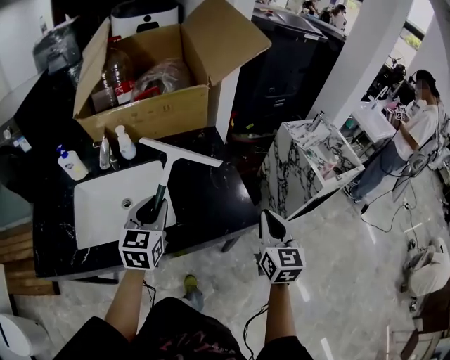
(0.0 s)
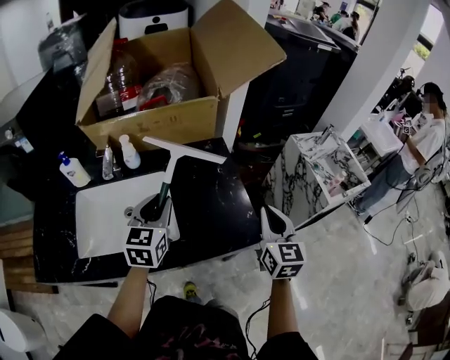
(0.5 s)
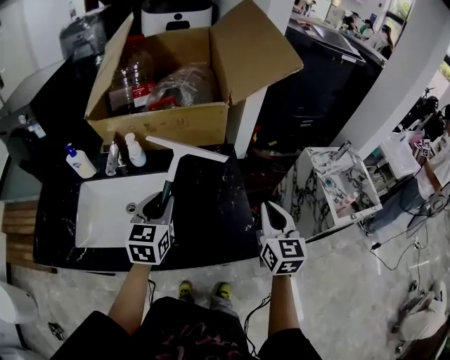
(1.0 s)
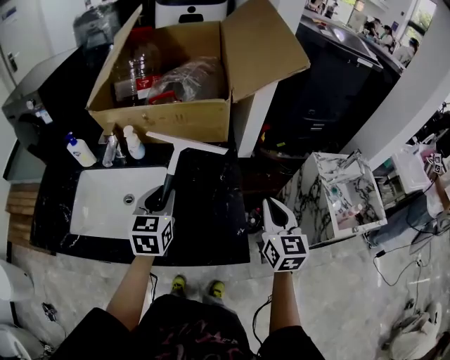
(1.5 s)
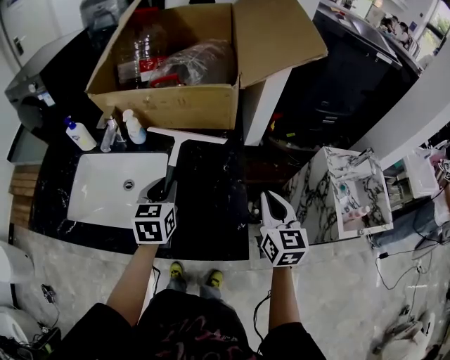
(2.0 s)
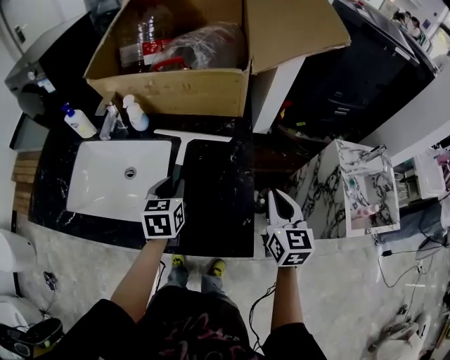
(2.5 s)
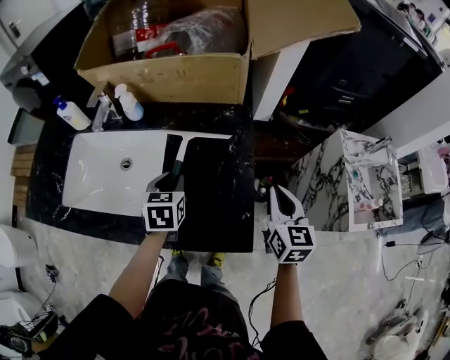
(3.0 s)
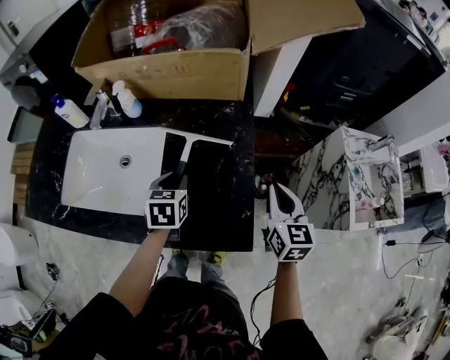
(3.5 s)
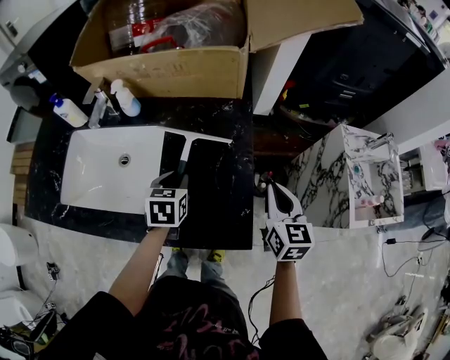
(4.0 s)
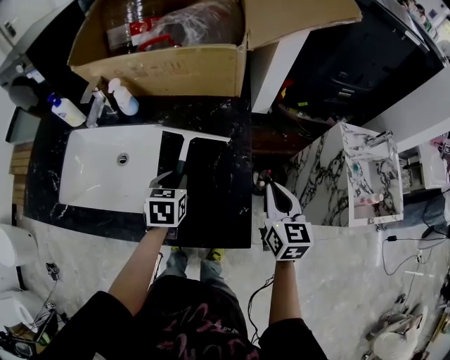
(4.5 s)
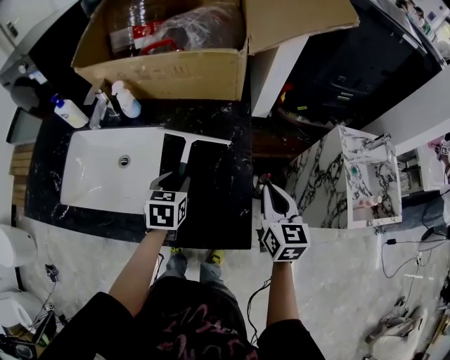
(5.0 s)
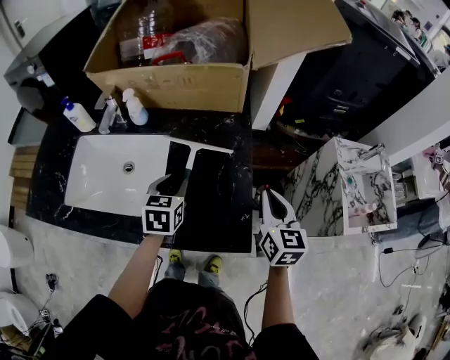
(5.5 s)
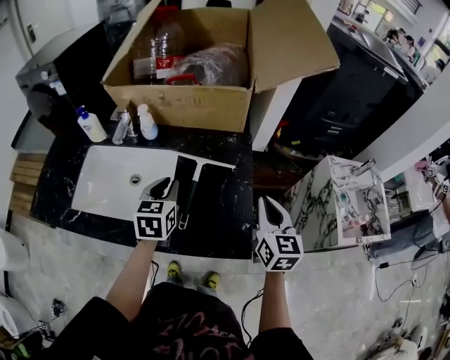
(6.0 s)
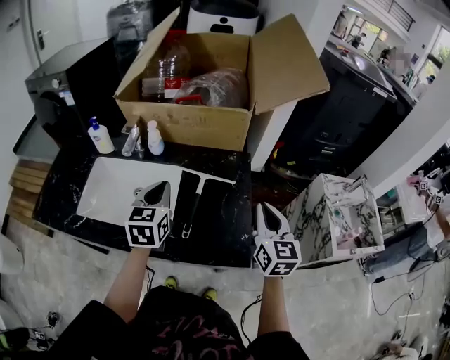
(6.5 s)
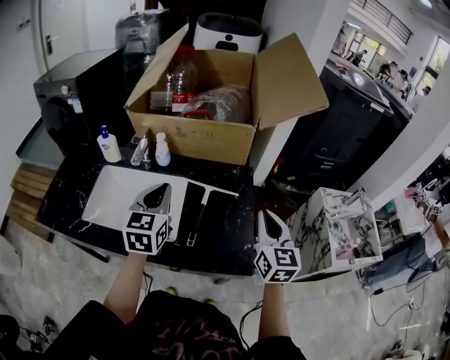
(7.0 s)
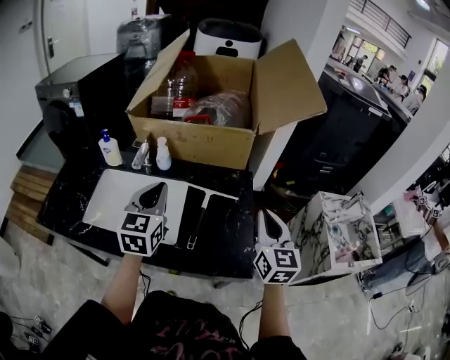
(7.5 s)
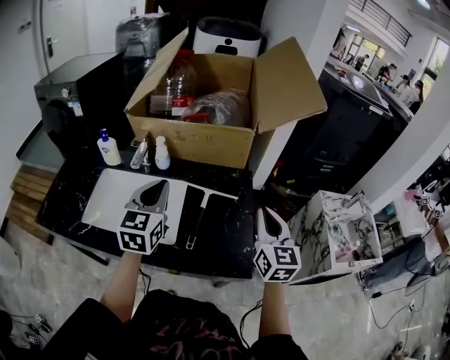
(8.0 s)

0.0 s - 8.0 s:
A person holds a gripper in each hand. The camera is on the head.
0.0 s - 2.0 s: The right gripper travels forward by about 20 cm, and turns by approximately 20 degrees. The left gripper heads forward and to the right, covering roughly 15 cm, and swivels roughly 30 degrees.
2.0 s - 4.0 s: The left gripper moves downward, about 10 cm; the right gripper goes some 10 cm downward.
4.0 s - 6.0 s: The grippers both shift upward by about 10 cm.
6.0 s - 8.0 s: The right gripper heads upward, covering approximately 10 cm; the left gripper heads upward, covering some 15 cm, and turns by about 20 degrees.

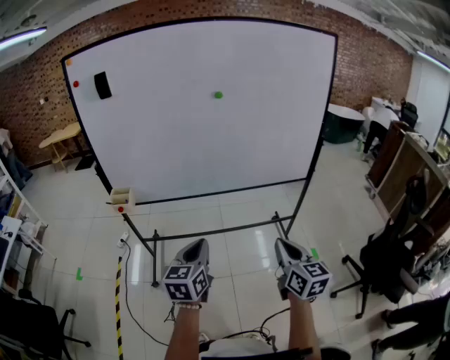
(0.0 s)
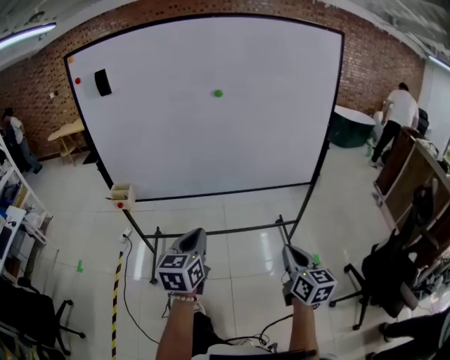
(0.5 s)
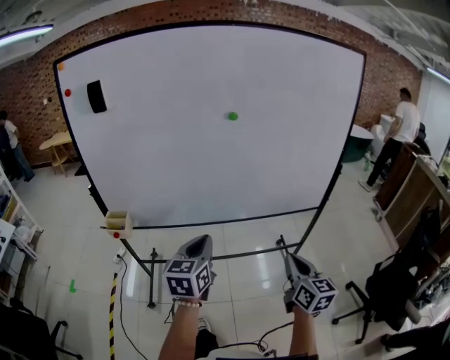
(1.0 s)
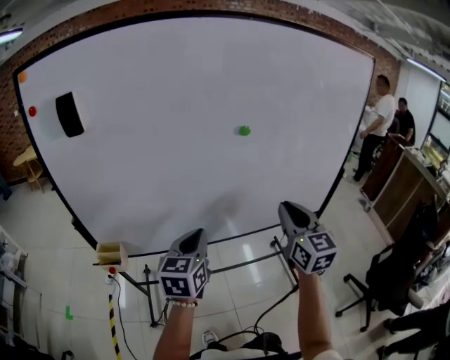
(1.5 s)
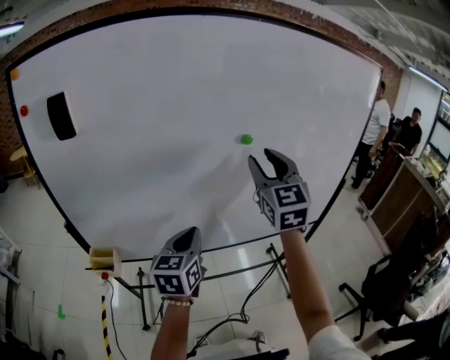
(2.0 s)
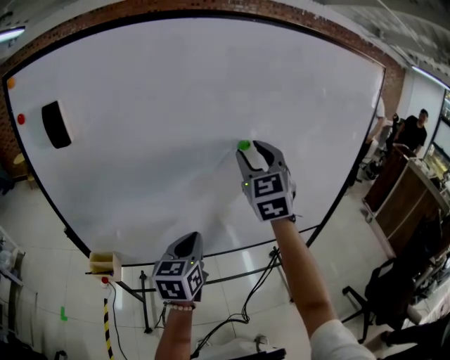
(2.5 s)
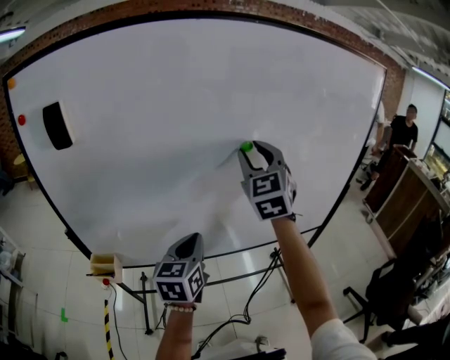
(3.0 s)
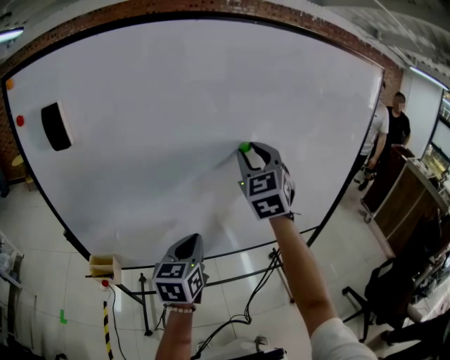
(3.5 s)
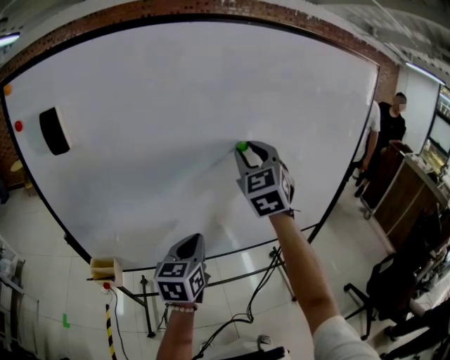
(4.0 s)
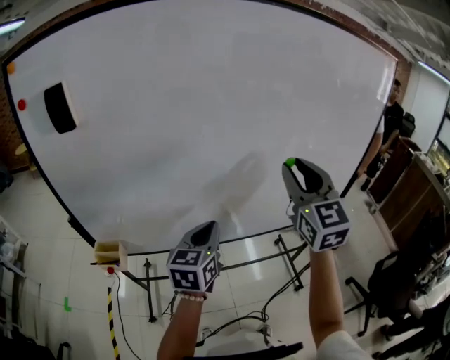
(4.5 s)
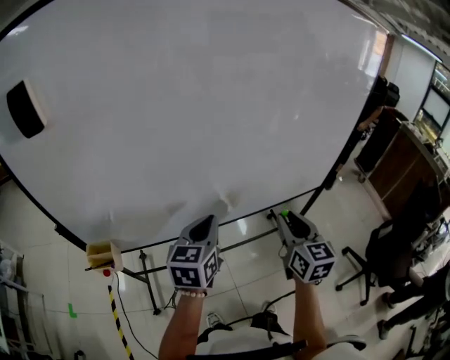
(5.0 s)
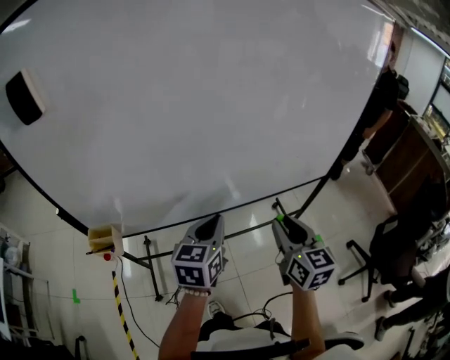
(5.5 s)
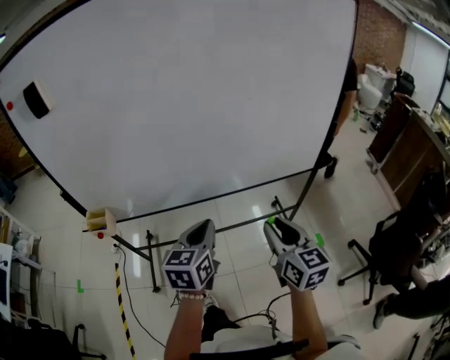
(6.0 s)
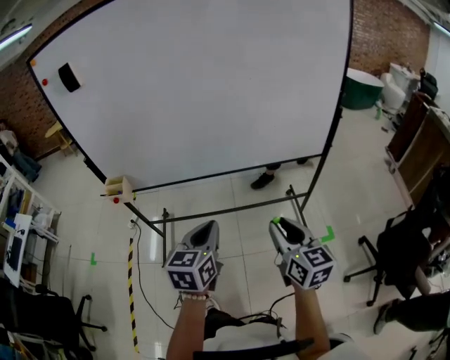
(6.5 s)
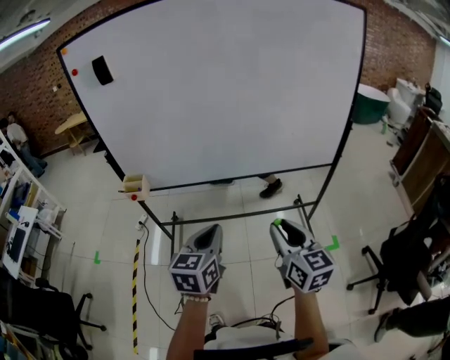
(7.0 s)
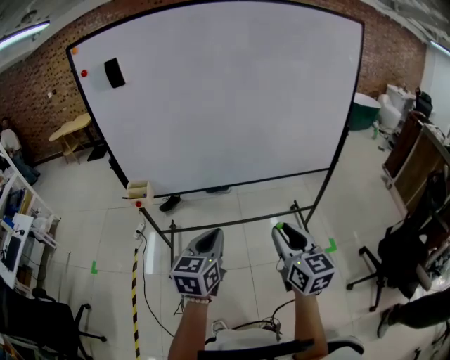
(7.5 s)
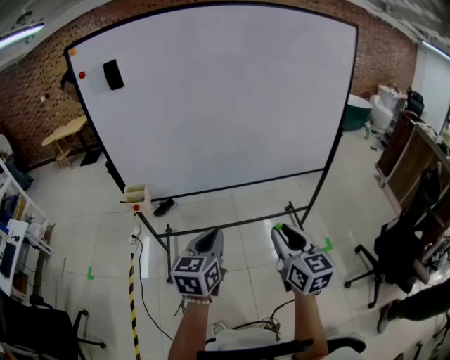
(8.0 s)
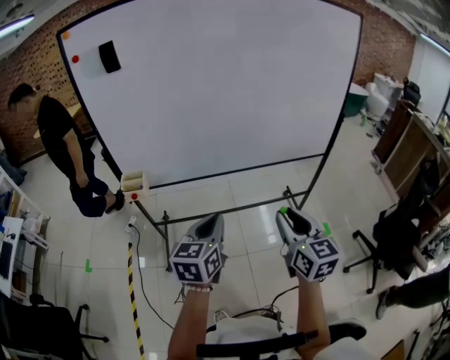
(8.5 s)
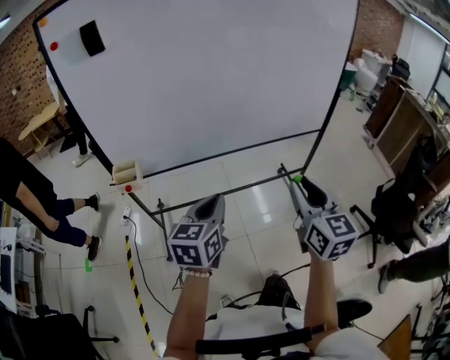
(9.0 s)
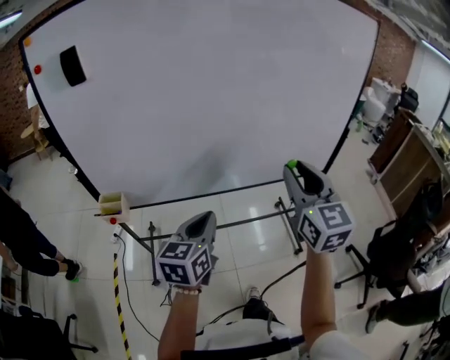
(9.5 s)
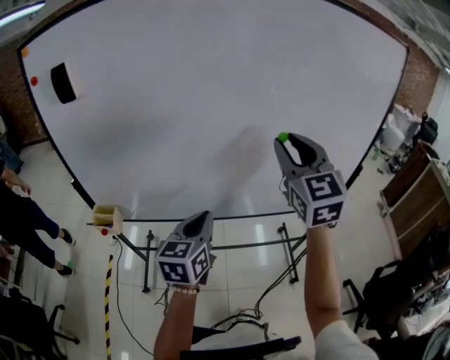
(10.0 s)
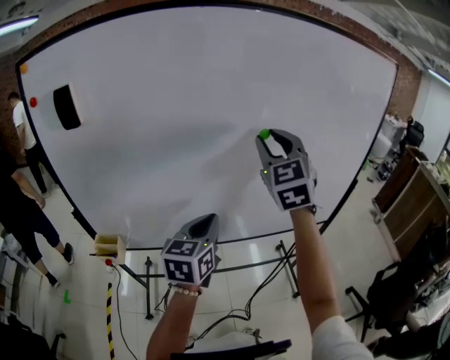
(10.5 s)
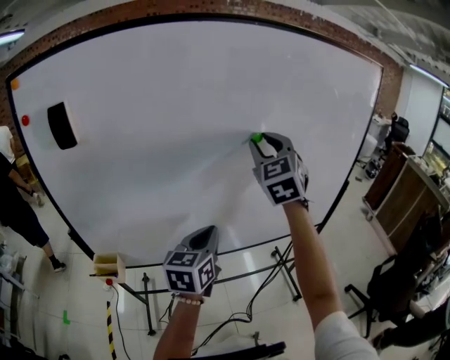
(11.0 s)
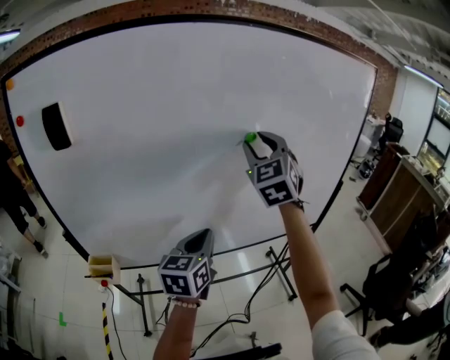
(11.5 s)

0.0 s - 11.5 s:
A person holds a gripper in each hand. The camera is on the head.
0.0 s - 2.0 s: The right gripper moves forward and upward, roughly 50 cm, swivels roughly 40 degrees, and opens up. The left gripper moves forward, roughly 35 cm.
2.0 s - 4.0 s: The right gripper shifts by about 5 cm.
4.0 s - 6.0 s: The left gripper heads to the right, backward and downward, covering roughly 20 cm; the right gripper moves backward, downward and to the right, approximately 40 cm, and rotates around the line of its fingers by roughly 40 degrees, clockwise from behind.
6.0 s - 7.5 s: The two grippers go about 20 cm backward and to the left.
7.5 s - 9.5 s: The left gripper travels forward by approximately 15 cm. The right gripper is displaced forward and upward by some 25 cm, and changes its angle by some 20 degrees.
9.5 s - 11.5 s: The right gripper is displaced forward and upward by some 30 cm, and rotates approximately 30 degrees, while the left gripper moves forward, roughly 15 cm.

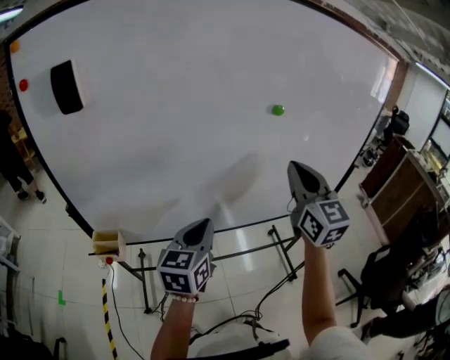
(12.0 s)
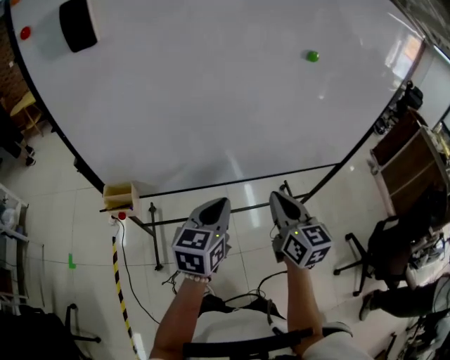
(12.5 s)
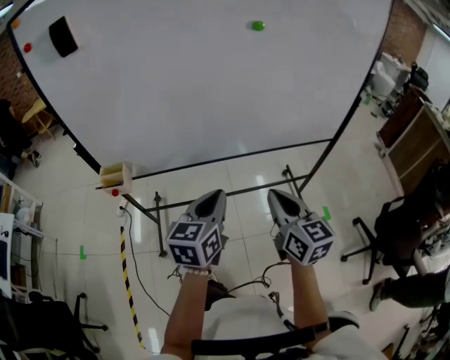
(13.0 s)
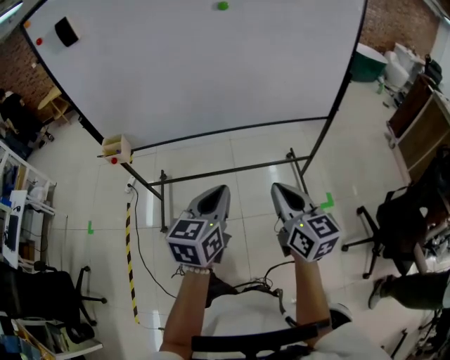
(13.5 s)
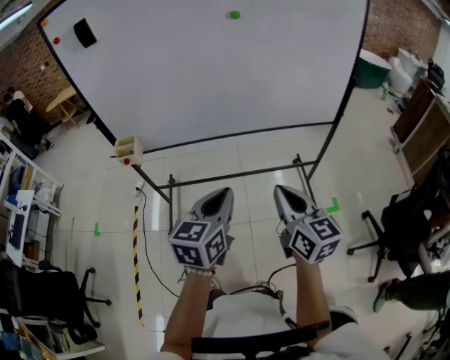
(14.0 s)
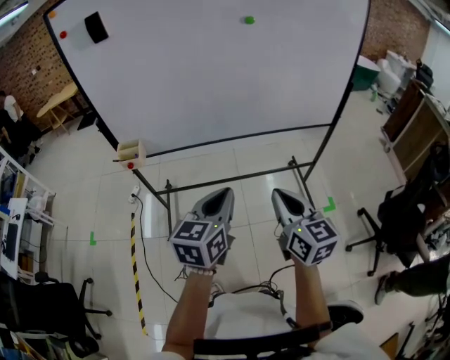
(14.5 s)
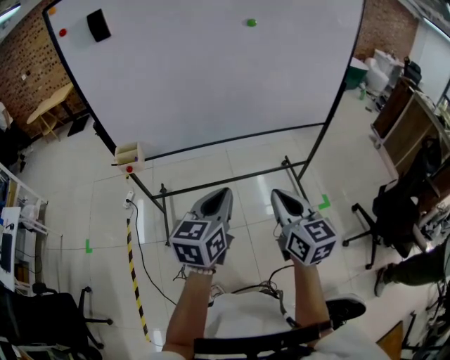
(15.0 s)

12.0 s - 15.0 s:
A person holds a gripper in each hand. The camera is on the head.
12.0 s - 13.5 s: The right gripper heads backward and downward, covering some 40 cm, and turns by approximately 30 degrees; the left gripper goes some 30 cm backward and to the right.
13.5 s - 15.0 s: The grippers both shift to the left by roughly 15 cm.

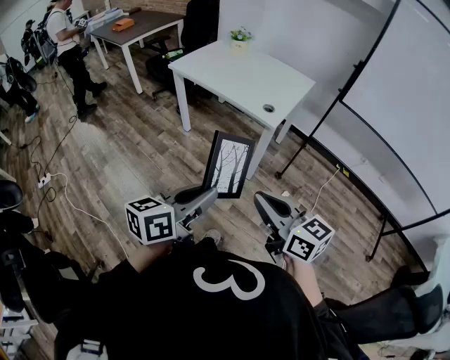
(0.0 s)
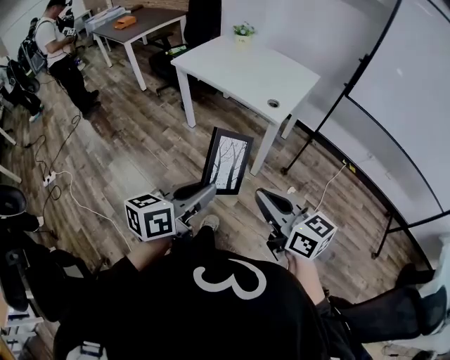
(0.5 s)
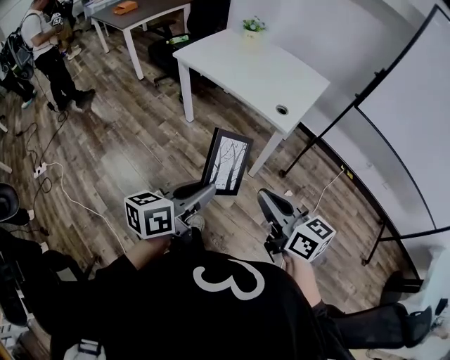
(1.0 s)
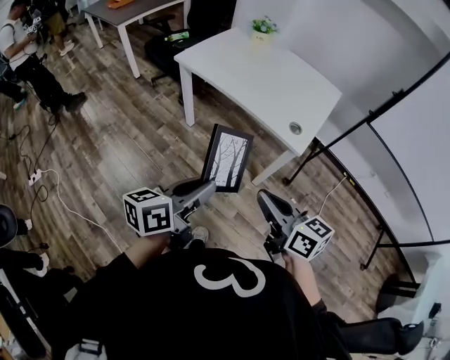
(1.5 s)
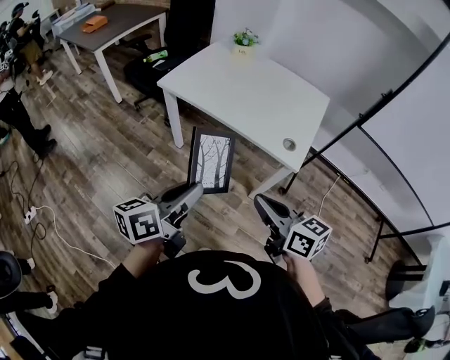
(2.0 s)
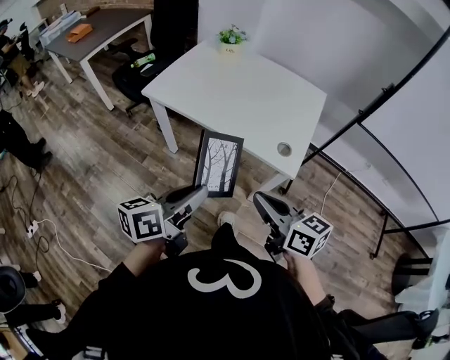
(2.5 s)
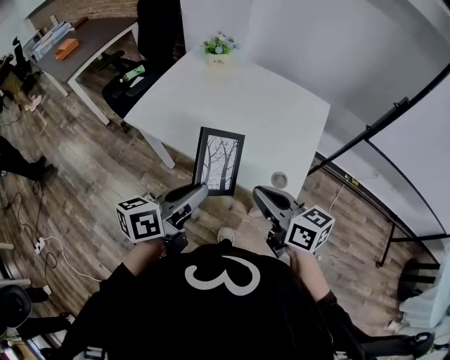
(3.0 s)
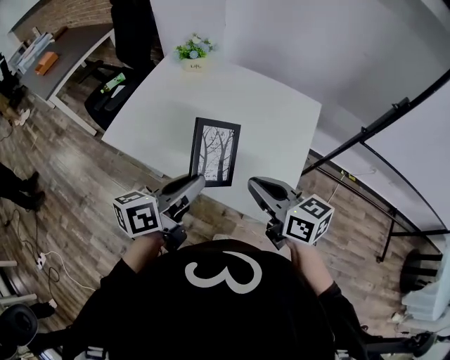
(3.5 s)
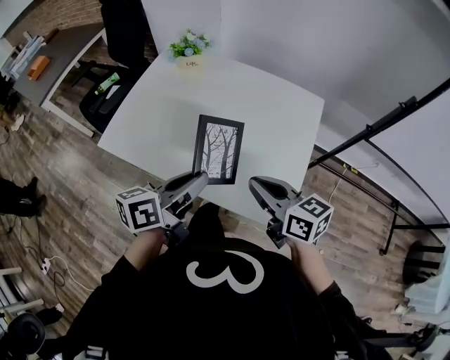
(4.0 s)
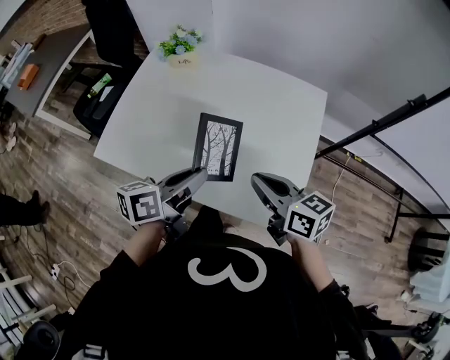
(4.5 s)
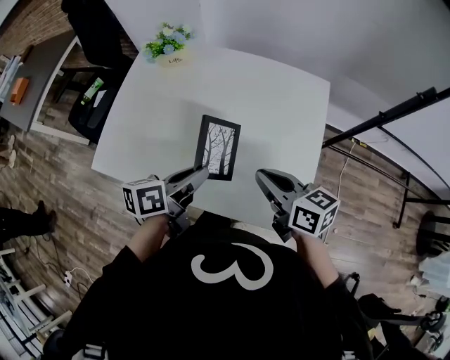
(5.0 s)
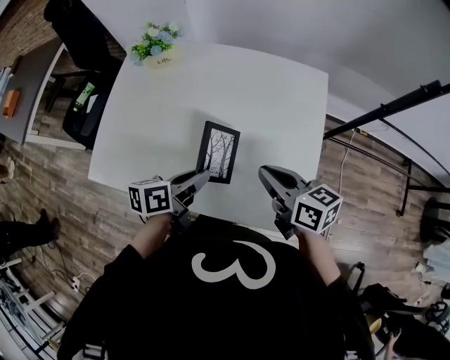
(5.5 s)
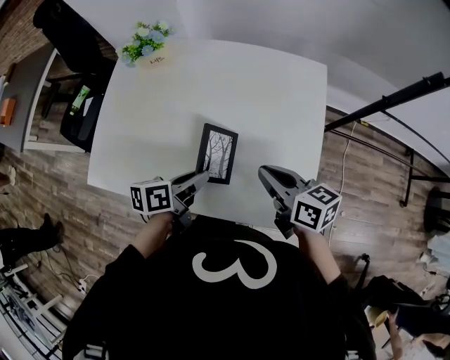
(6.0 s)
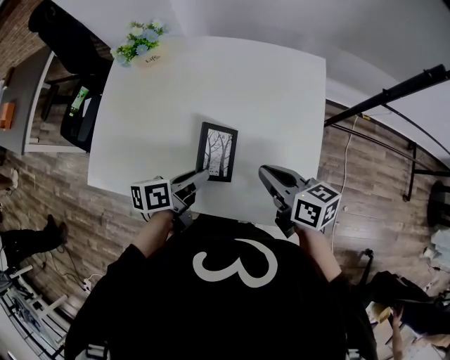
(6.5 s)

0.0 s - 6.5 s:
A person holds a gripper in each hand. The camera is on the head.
0.0 s - 2.0 s: The grippers both shift forward and to the left by approximately 30 cm.
2.0 s - 4.5 s: The two grippers go roughly 40 cm forward.
4.5 s - 6.5 s: The grippers both shift downward and forward by some 10 cm. The left gripper changes its angle by approximately 20 degrees.
